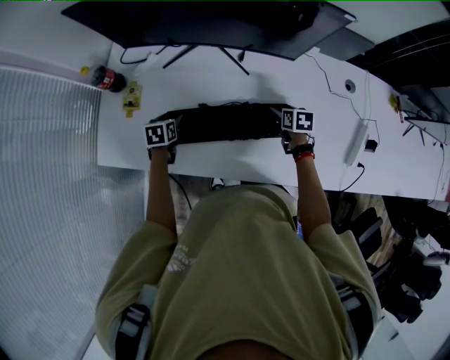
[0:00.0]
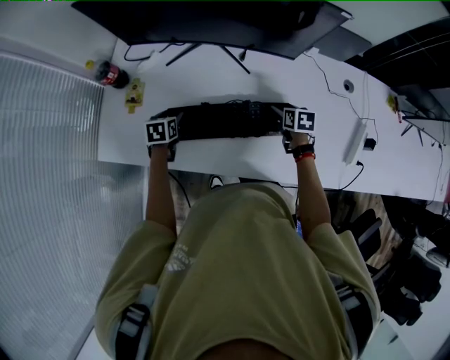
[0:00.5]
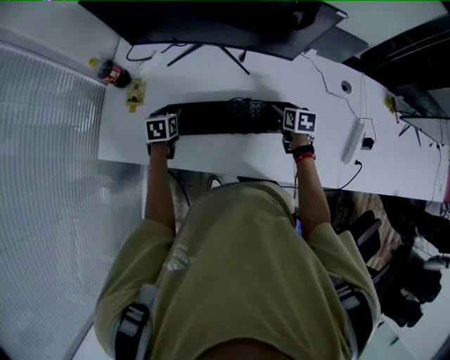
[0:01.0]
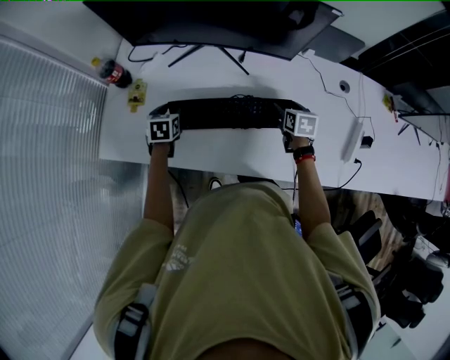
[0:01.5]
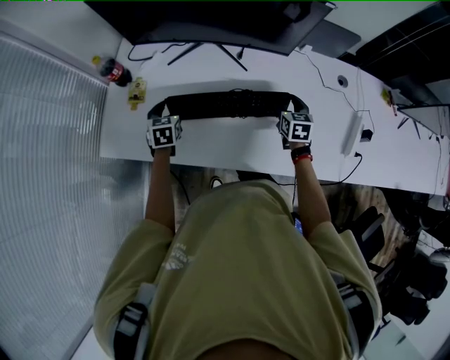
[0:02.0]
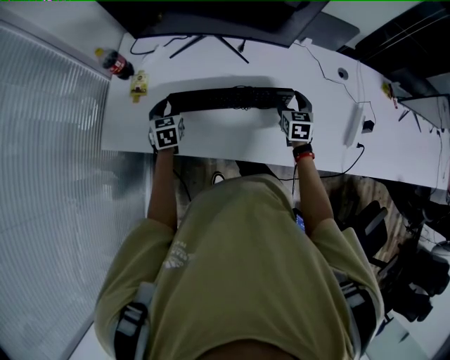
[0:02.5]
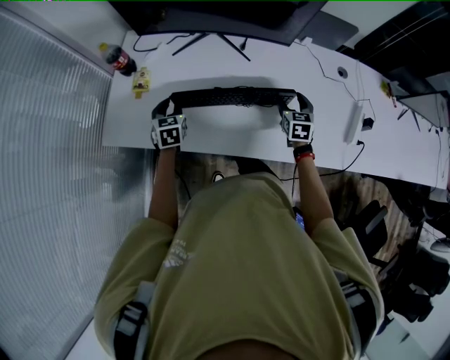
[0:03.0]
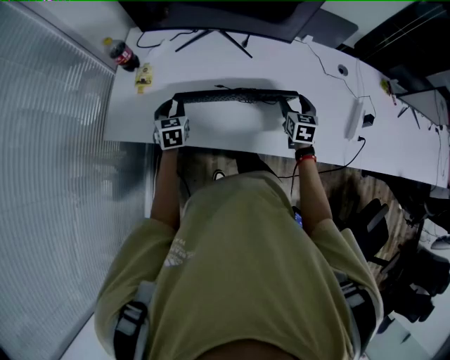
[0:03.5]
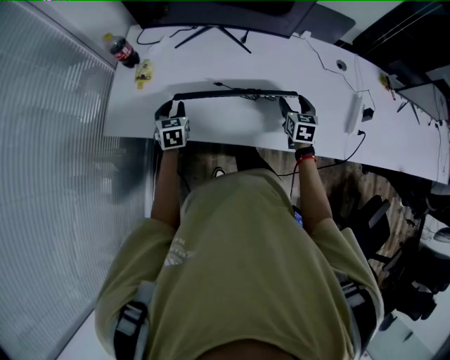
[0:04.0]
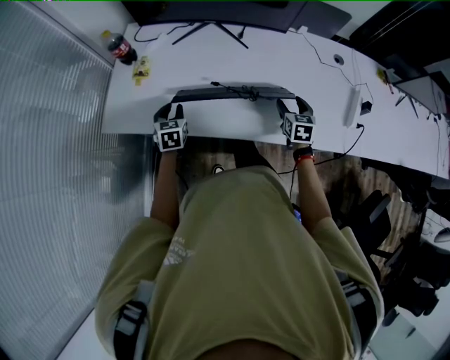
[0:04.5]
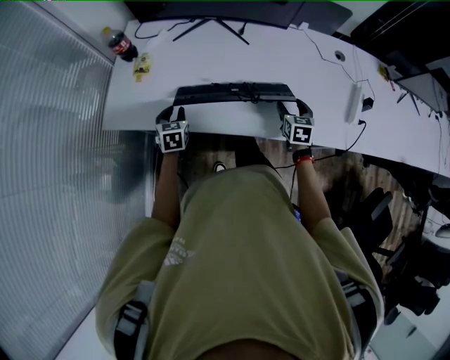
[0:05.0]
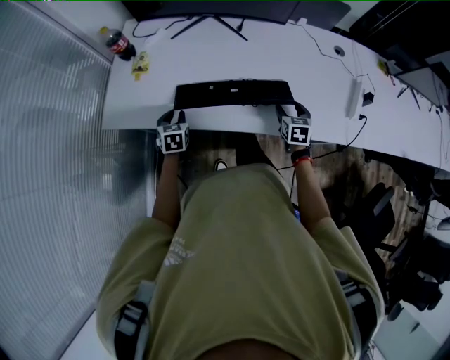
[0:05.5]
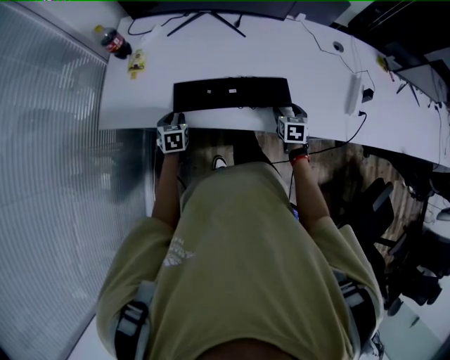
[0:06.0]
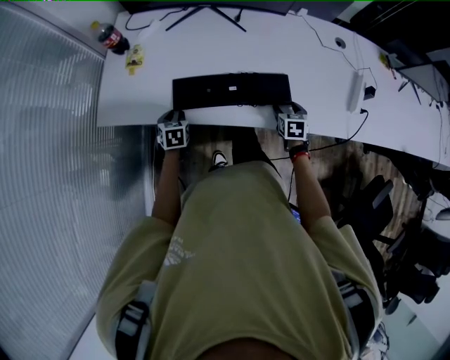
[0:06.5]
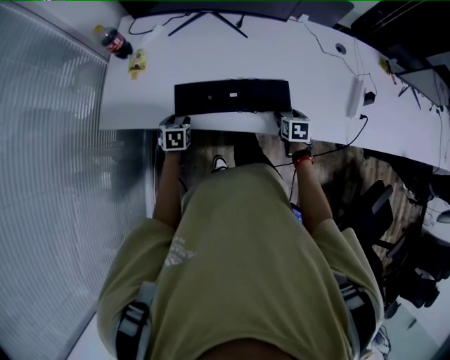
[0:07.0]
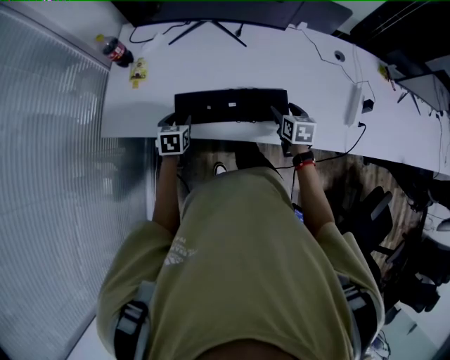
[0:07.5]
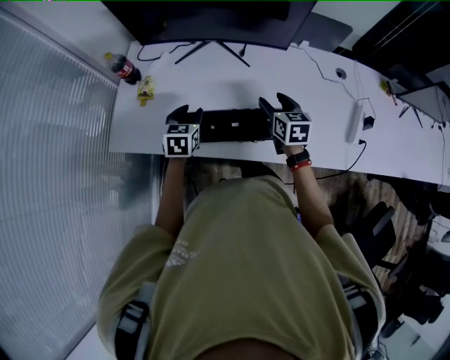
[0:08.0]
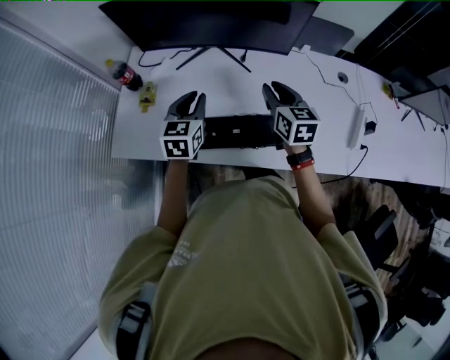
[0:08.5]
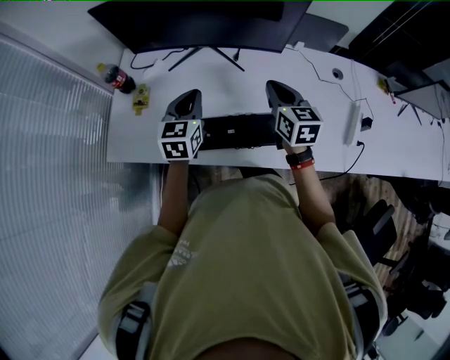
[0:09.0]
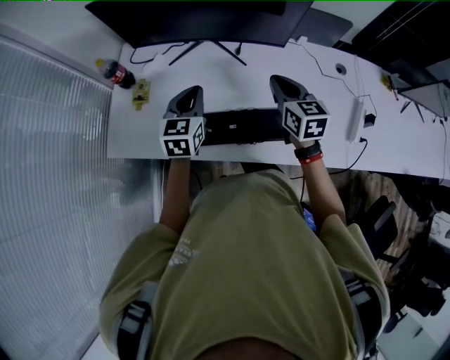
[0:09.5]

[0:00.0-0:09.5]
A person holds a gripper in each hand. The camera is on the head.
0:00.0 to 0:02.0: Both grippers move upward, about 10 cm. The right gripper turns by about 30 degrees; the left gripper rotates approximately 20 degrees.
0:02.0 to 0:04.0: The two grippers go approximately 10 cm backward.
0:04.0 to 0:05.5: Both grippers travel together backward and downward, approximately 10 cm.
0:05.5 to 0:07.5: The right gripper moves about 5 cm.
0:07.5 to 0:09.5: The right gripper shifts approximately 20 cm upward and forward, swivels some 20 degrees, and closes, while the left gripper moves upward, forward and to the right, about 25 cm, changes its angle by approximately 30 degrees, and closes.

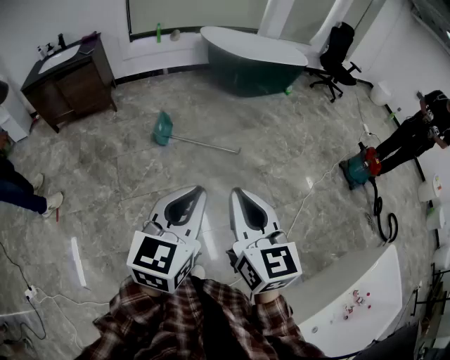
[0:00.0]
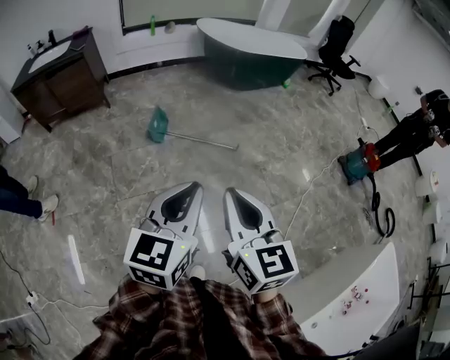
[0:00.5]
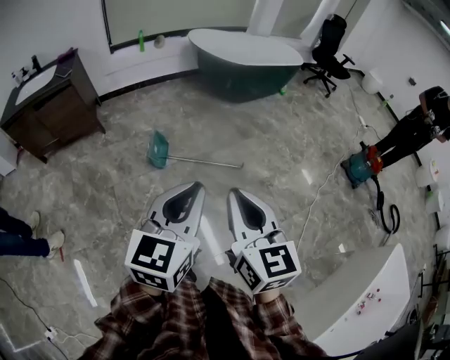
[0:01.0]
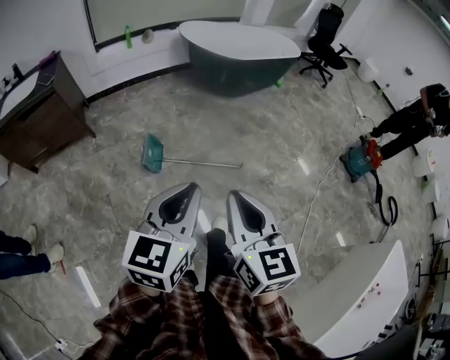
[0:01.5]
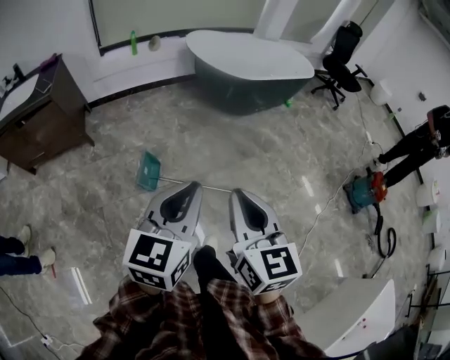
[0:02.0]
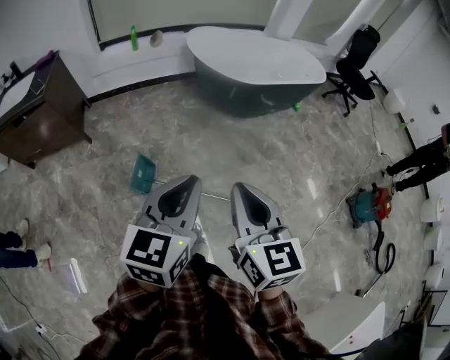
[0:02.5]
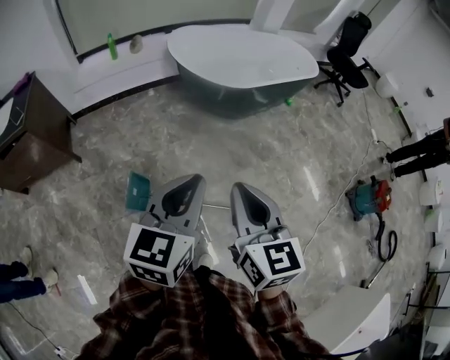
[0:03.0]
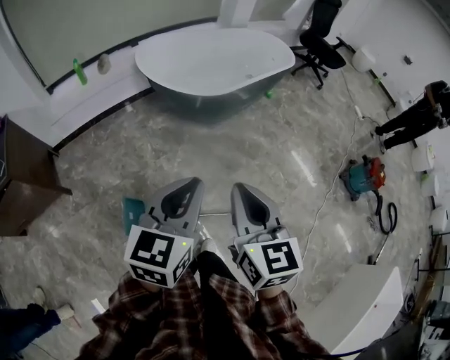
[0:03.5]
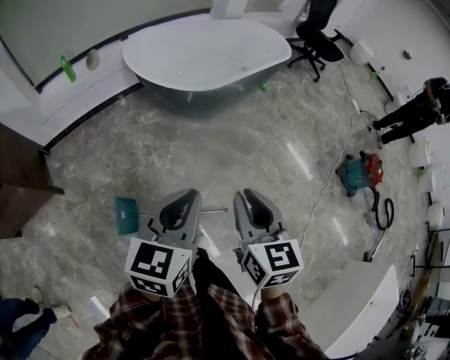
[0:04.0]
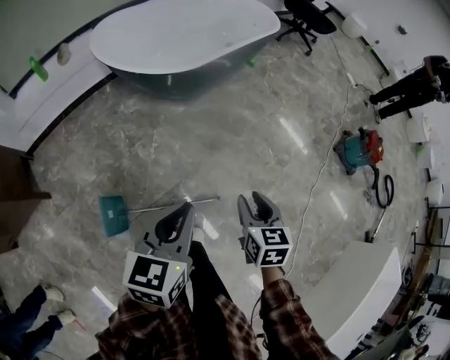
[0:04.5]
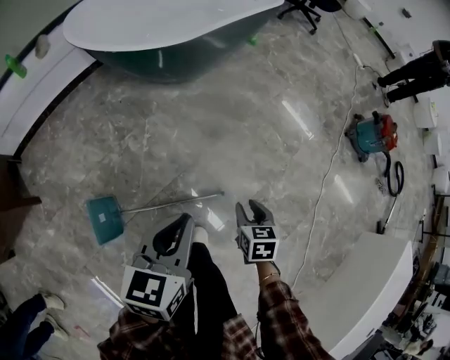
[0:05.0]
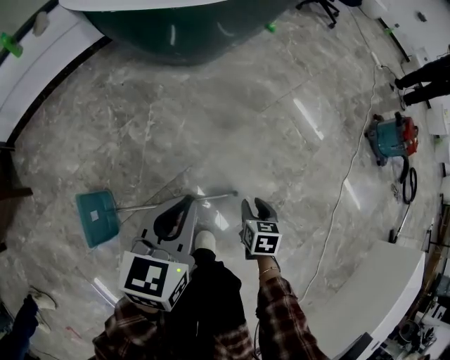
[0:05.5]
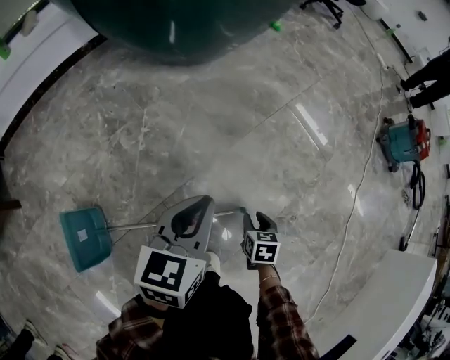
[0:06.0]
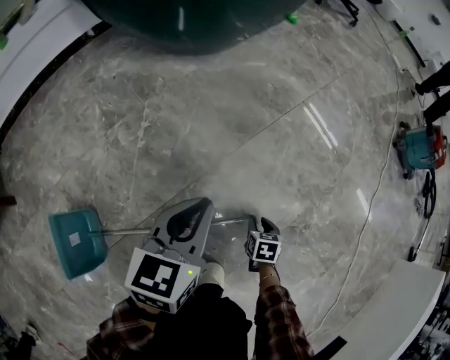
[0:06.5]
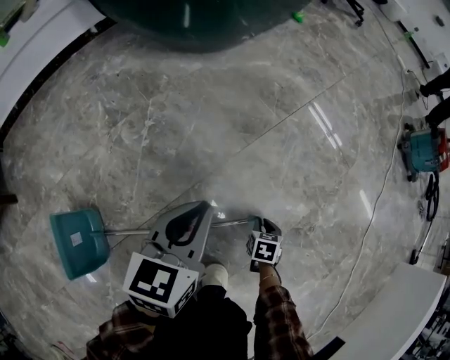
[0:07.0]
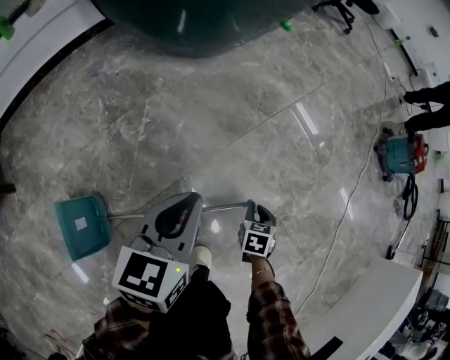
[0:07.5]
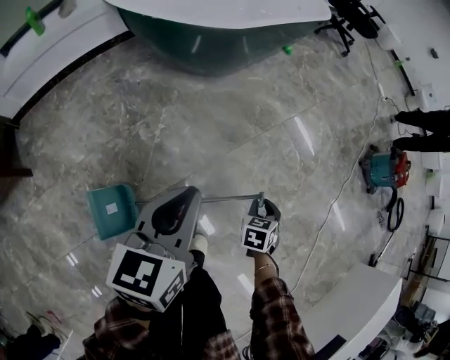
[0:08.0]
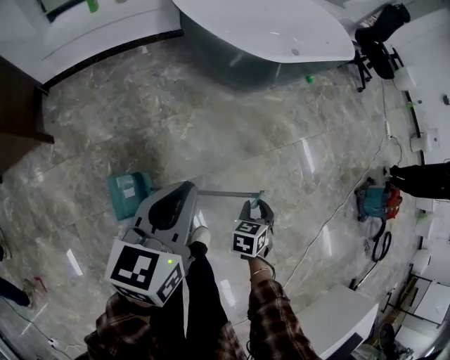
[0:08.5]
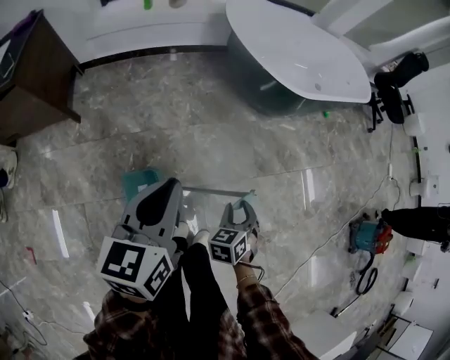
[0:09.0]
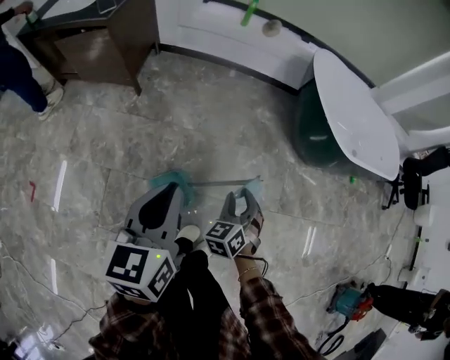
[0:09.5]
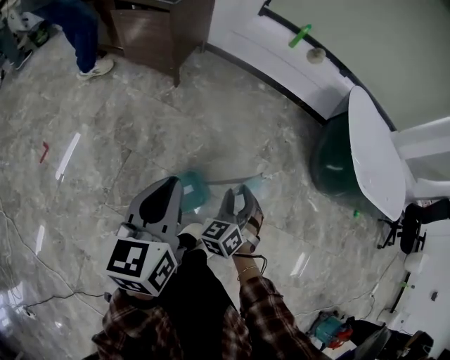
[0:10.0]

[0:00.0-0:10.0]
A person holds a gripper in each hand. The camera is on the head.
0:00.0 to 0:02.0: The two grippers travel together, forward, some 50 cm.
0:02.0 to 0:04.0: The grippers both shift forward by some 35 cm.
0:04.0 to 0:06.0: The two grippers go some 60 cm downward. The right gripper angles its fingers downward, by roughly 40 degrees.
0:06.0 to 0:08.0: The two grippers go about 20 cm upward. The right gripper rotates approximately 20 degrees.
0:08.0 to 0:10.0: The pair of grippers is taken approximately 50 cm. The right gripper rotates approximately 80 degrees. Meanwhile the left gripper changes its angle by roughly 70 degrees.

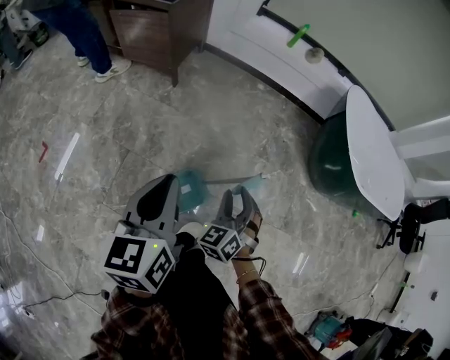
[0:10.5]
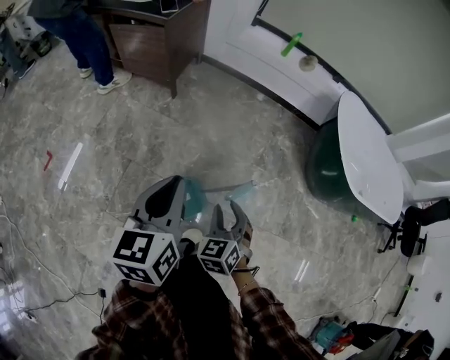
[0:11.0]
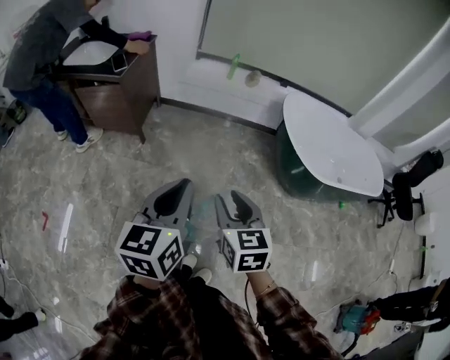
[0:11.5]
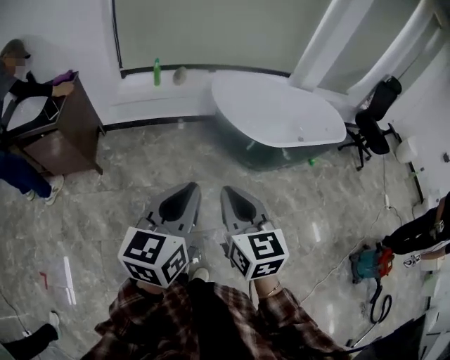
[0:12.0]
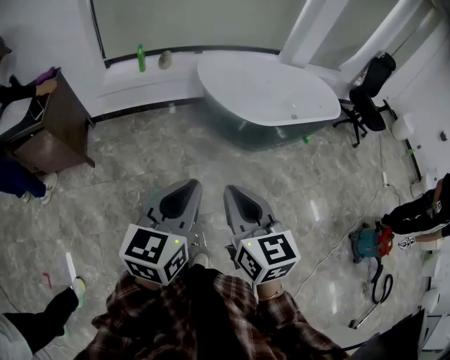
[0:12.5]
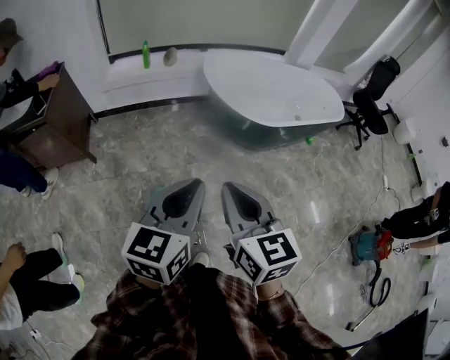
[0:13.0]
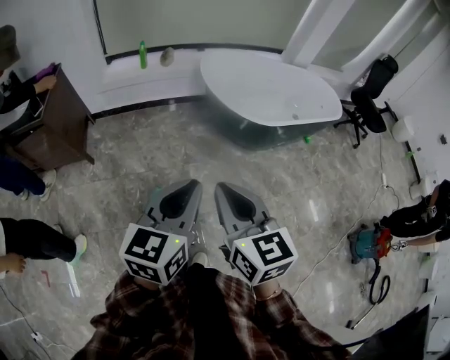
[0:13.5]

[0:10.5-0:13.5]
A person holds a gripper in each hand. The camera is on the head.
0:10.5 to 0:12.0: The left gripper goes roughly 35 cm to the right and upward, and swivels about 40 degrees, while the right gripper is displaced upward and to the right by about 40 cm, rotates around the line of its fingers by roughly 50 degrees, clockwise from behind, and closes up.
0:12.0 to 0:13.5: There are only small adjustments of the grippers.

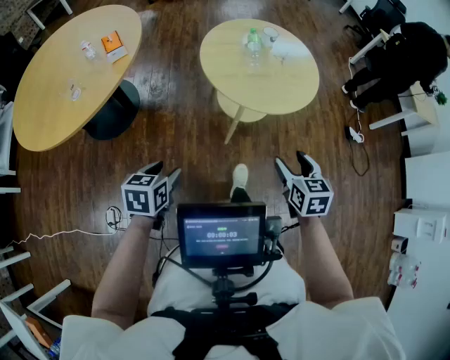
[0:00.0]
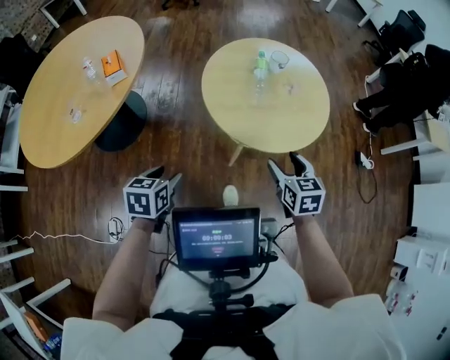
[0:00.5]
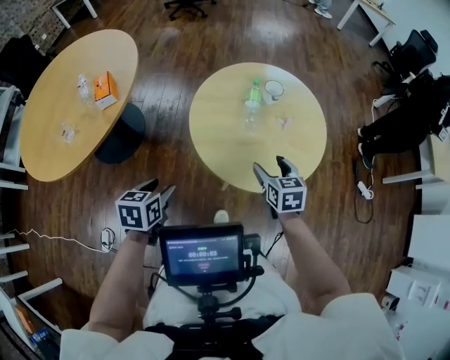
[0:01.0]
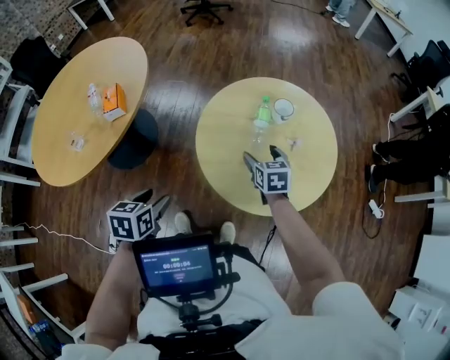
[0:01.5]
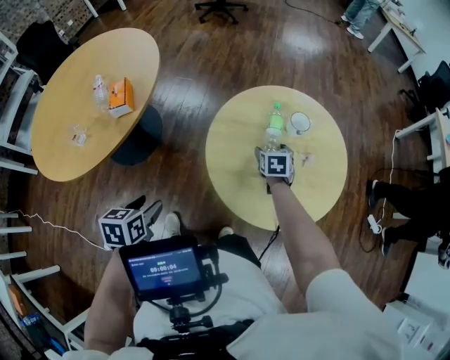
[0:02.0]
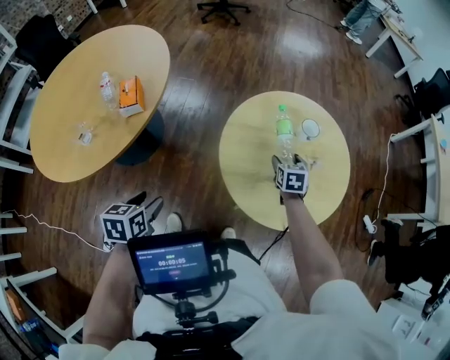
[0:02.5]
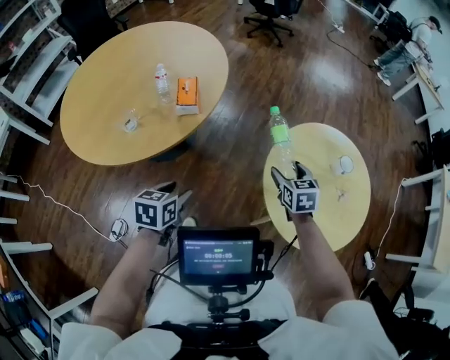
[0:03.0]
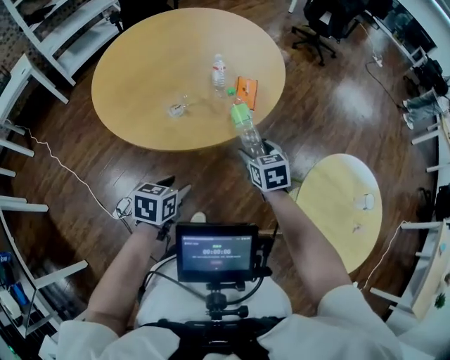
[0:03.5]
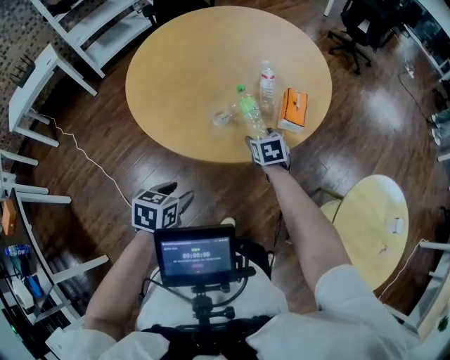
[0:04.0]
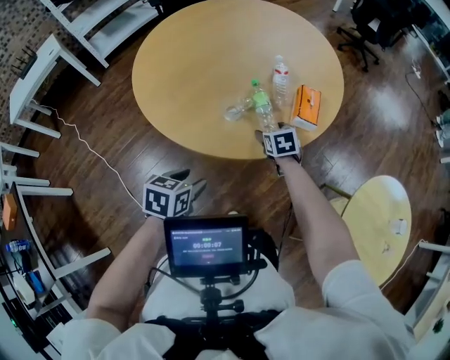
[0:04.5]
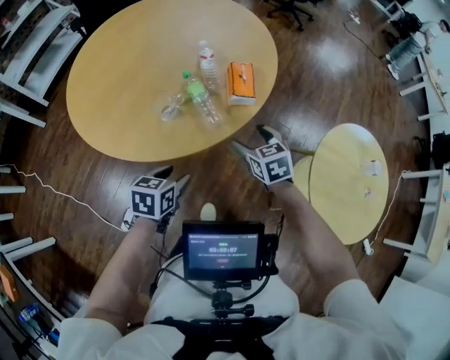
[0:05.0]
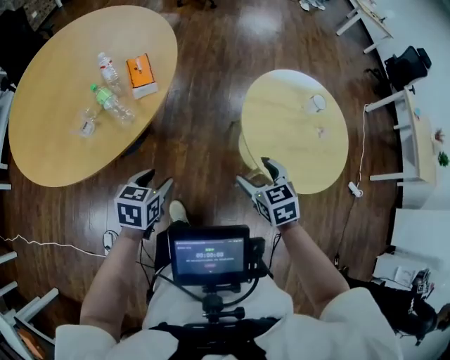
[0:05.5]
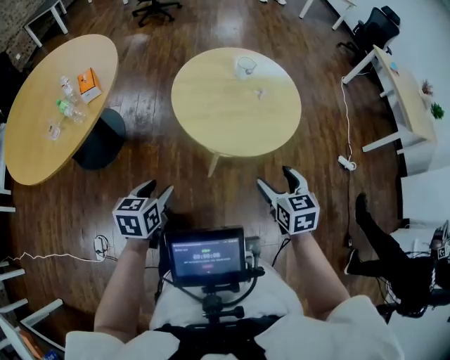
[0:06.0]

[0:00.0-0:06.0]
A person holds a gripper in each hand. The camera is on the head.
0:00.0 to 0:02.0: The right gripper is displaced forward by roughly 50 cm. The left gripper goes about 20 cm forward, and rotates approximately 20 degrees.
0:02.0 to 0:04.0: The right gripper shifts by some 70 cm, and swivels approximately 50 degrees; the left gripper shifts by about 40 cm.
0:04.0 to 0:06.0: The two grippers travel together, roughly 60 cm. The right gripper swivels roughly 50 degrees. The left gripper swivels about 40 degrees.
